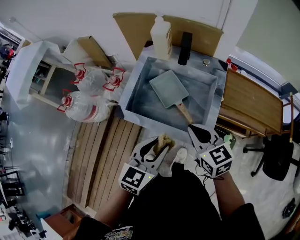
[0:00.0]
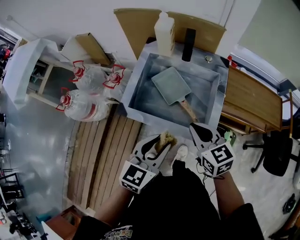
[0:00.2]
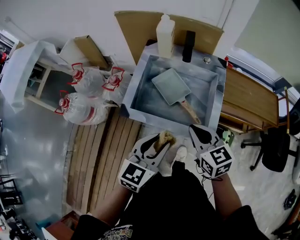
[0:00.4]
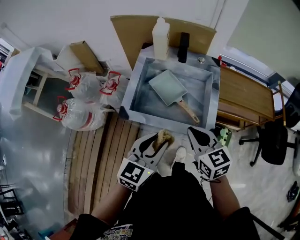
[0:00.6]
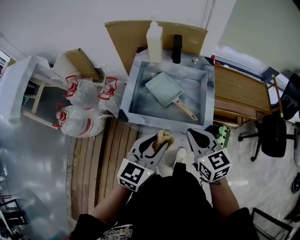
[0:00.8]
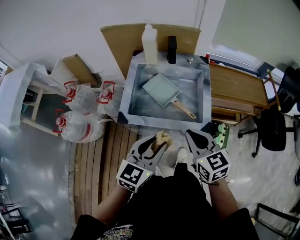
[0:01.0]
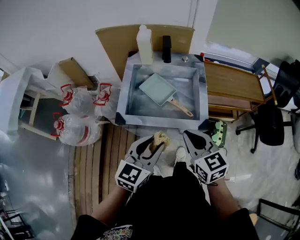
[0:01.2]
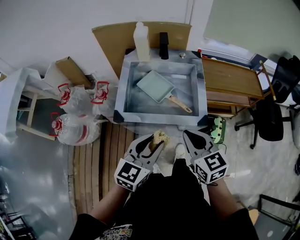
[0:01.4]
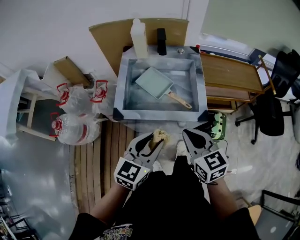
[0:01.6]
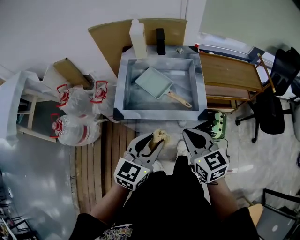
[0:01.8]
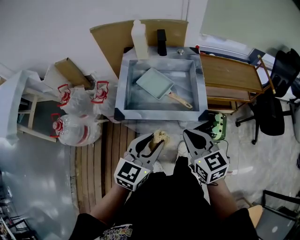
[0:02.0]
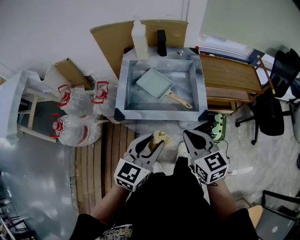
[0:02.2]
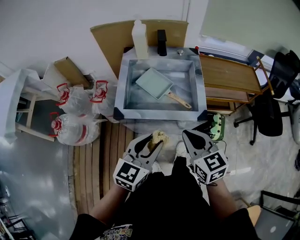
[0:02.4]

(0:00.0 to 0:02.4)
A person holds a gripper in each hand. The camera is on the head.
0:00.0 - 0:01.2: The left gripper shifts about 10 cm to the left and backward, while the right gripper travels backward by approximately 10 cm.
0:01.2 - 0:02.4: There are only small adjustments of the grippers.

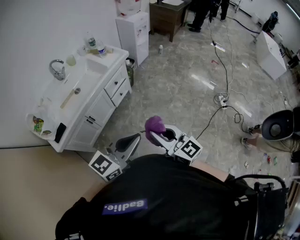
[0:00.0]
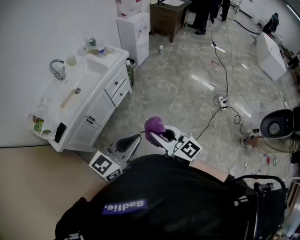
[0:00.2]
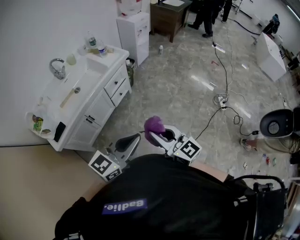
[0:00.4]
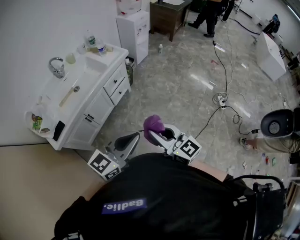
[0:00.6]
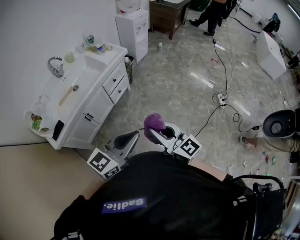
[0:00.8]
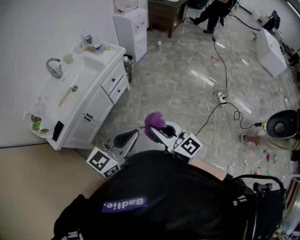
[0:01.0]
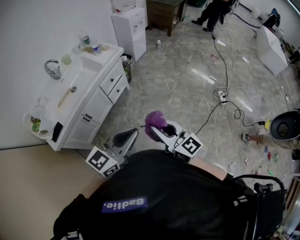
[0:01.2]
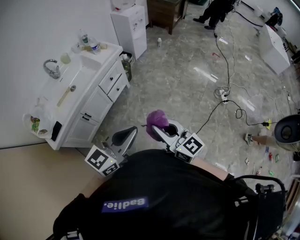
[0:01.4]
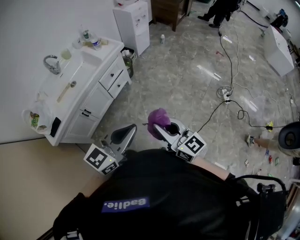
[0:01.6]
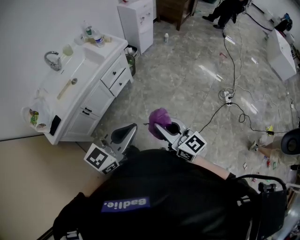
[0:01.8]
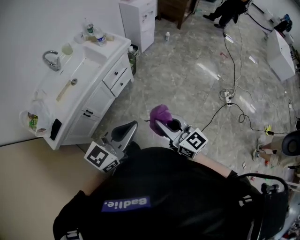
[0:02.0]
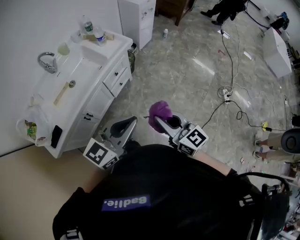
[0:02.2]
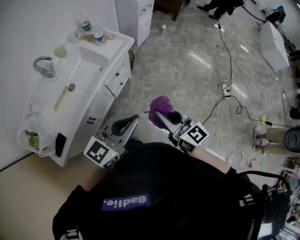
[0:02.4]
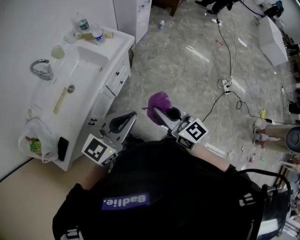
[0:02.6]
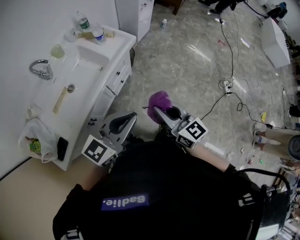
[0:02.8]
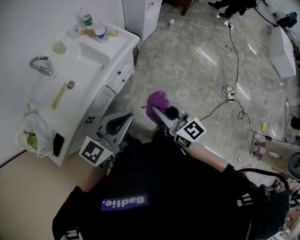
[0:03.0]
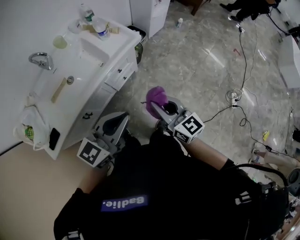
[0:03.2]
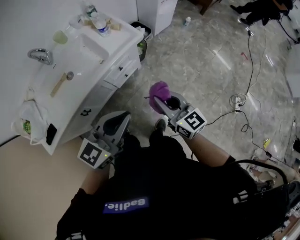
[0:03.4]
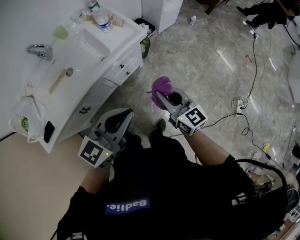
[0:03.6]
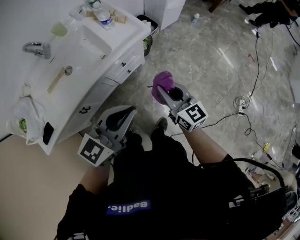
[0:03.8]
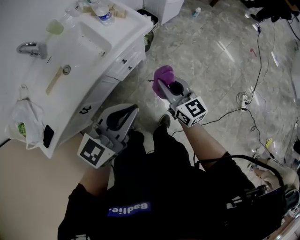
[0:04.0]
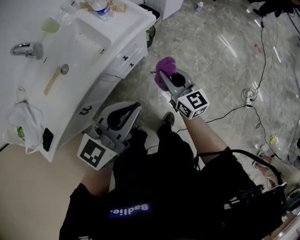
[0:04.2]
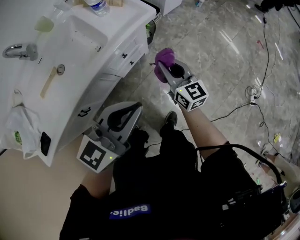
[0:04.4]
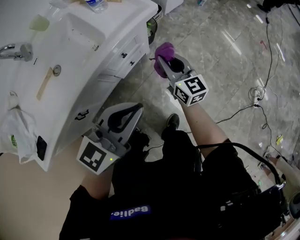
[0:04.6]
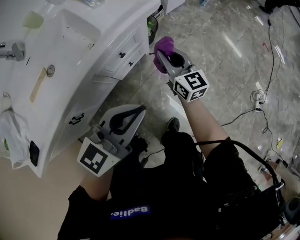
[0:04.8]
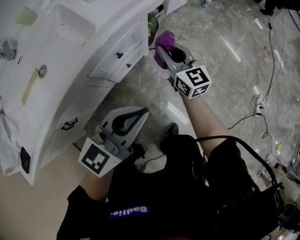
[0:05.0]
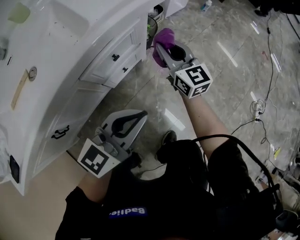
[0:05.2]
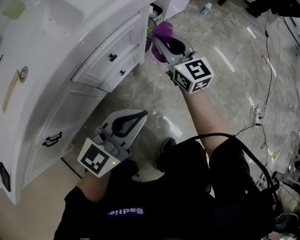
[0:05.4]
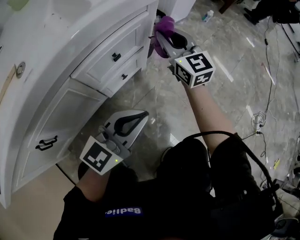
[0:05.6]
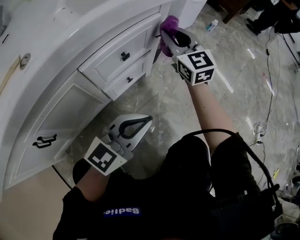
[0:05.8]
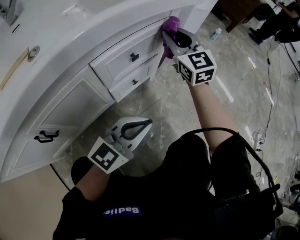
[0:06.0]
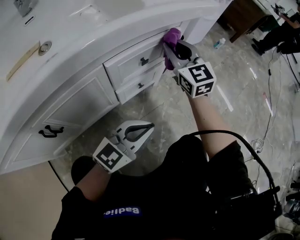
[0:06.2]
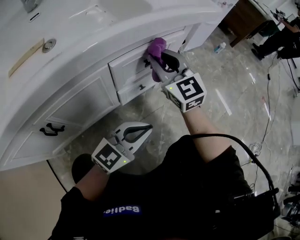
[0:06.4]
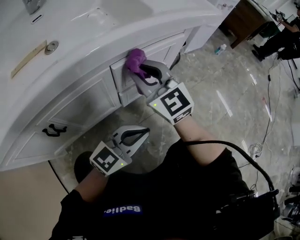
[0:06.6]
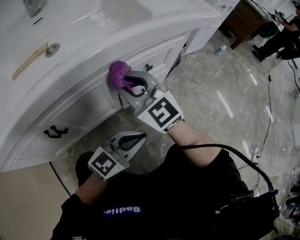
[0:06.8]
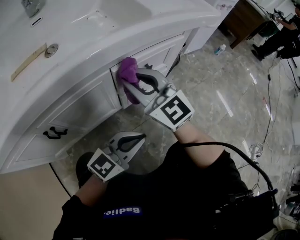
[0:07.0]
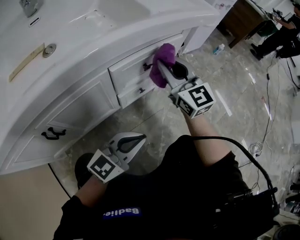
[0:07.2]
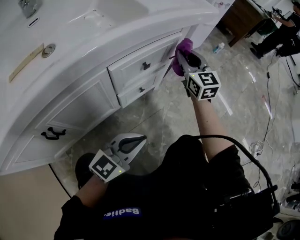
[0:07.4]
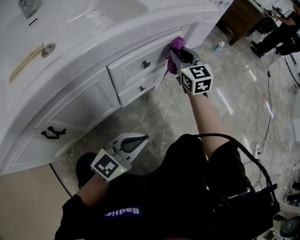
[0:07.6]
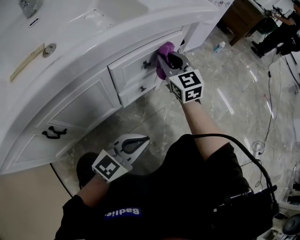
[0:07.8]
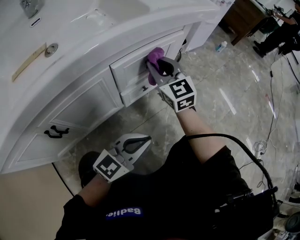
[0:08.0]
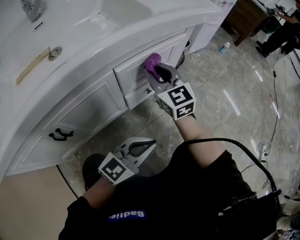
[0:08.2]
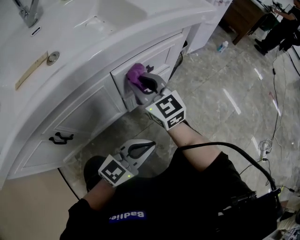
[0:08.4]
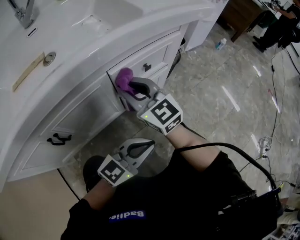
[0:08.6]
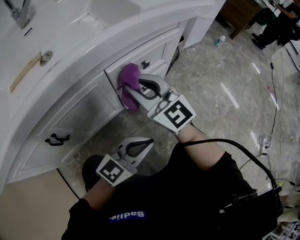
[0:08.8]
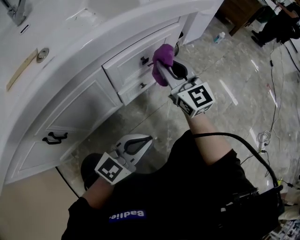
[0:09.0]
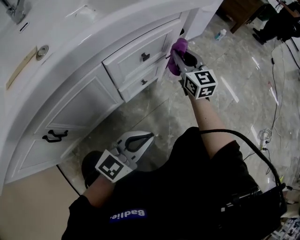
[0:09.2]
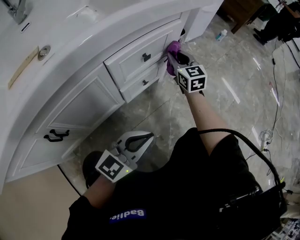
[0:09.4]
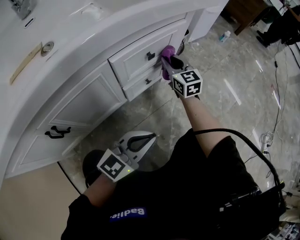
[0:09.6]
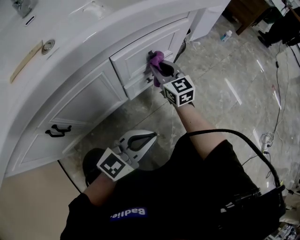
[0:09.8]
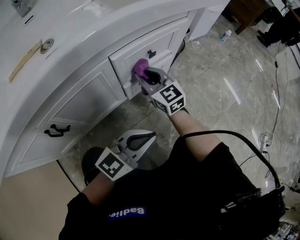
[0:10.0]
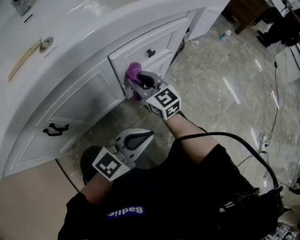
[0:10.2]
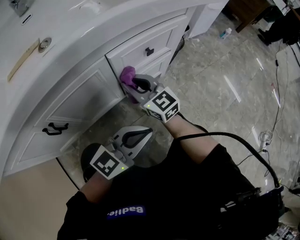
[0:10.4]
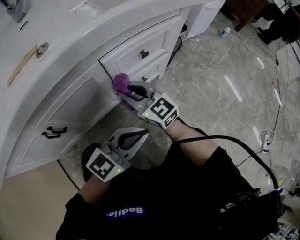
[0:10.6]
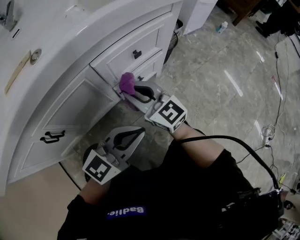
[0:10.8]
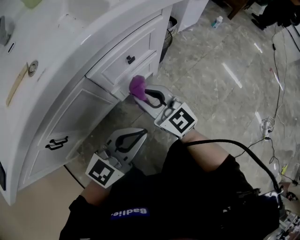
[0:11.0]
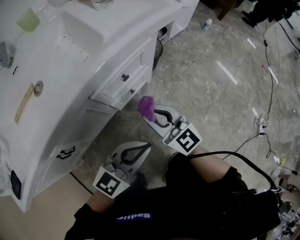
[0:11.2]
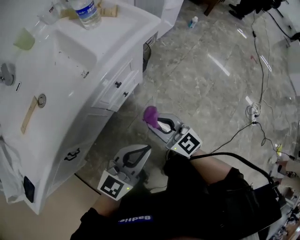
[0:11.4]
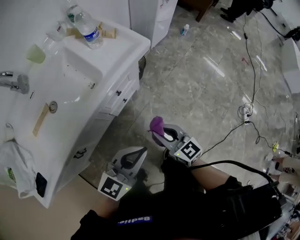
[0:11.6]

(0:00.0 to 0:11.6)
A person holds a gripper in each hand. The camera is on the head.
0:00.0 - 0:01.4: Both grippers travel together to the right, some 5 cm.
0:01.4 - 0:02.8: Both grippers move forward and to the left, roughly 30 cm.
0:02.8 - 0:04.4: The left gripper heads downward and forward, covering approximately 25 cm. The right gripper shifts roughly 40 cm downward and forward.
0:04.4 - 0:05.8: The left gripper is displaced downward by roughly 40 cm, while the right gripper goes roughly 25 cm downward and forward, and rotates about 30 degrees.
0:05.8 - 0:07.2: The right gripper goes approximately 15 cm backward and to the left. Meanwhile the left gripper moves to the left, some 5 cm.
0:07.2 - 0:08.8: The right gripper travels backward and to the left by some 10 cm.
0:08.8 - 0:10.2: The right gripper moves downward, about 15 cm, and reaches approximately 20 cm forward, then returns.
0:10.2 - 0:11.6: The right gripper travels upward, to the right and backward by approximately 35 cm. The left gripper goes approximately 30 cm upward.

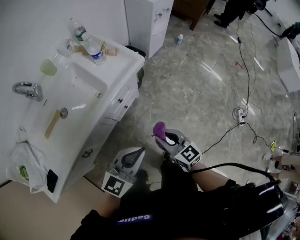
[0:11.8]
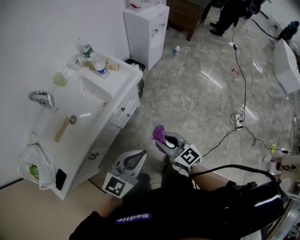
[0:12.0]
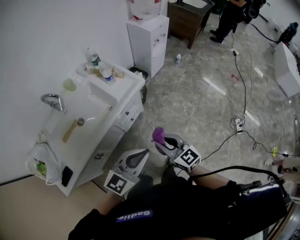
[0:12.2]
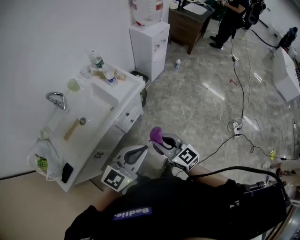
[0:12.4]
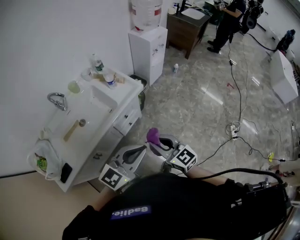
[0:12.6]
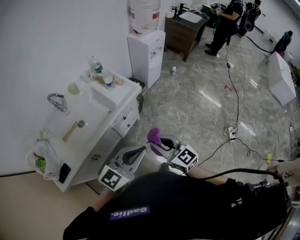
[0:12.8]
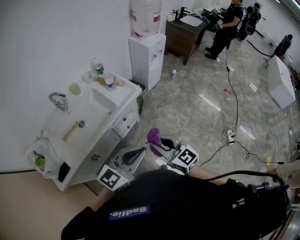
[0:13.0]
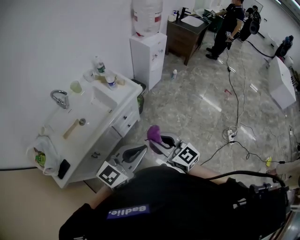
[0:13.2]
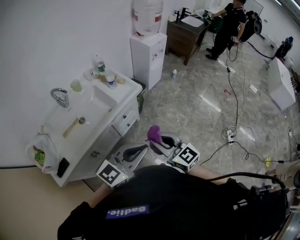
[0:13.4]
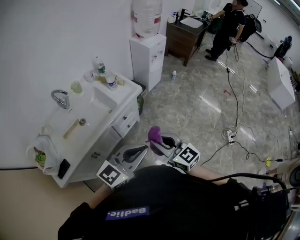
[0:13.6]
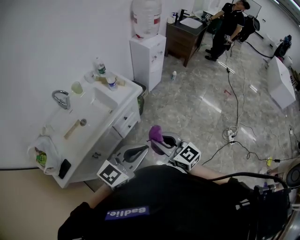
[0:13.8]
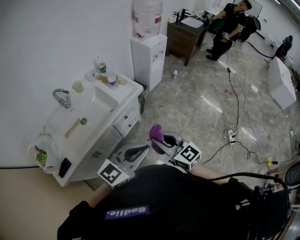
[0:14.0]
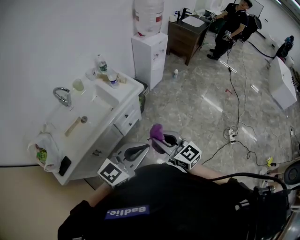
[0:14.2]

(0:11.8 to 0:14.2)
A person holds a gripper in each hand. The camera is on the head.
0:11.8 - 0:13.0: The grippers both shift upward by approximately 25 cm.
0:13.0 - 0:14.2: The grippers make only small movements.

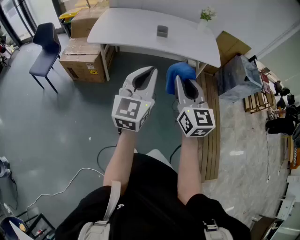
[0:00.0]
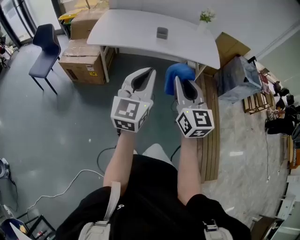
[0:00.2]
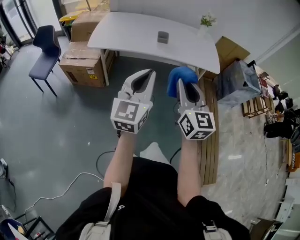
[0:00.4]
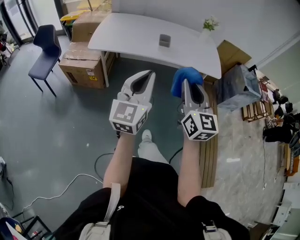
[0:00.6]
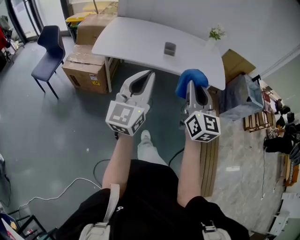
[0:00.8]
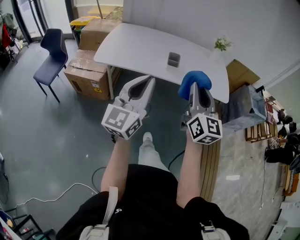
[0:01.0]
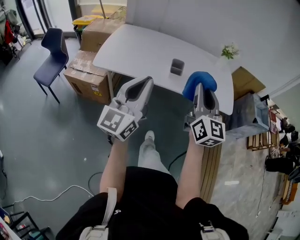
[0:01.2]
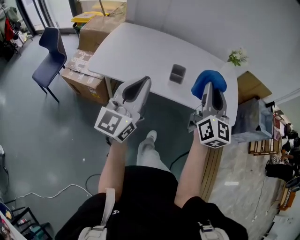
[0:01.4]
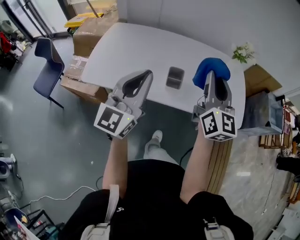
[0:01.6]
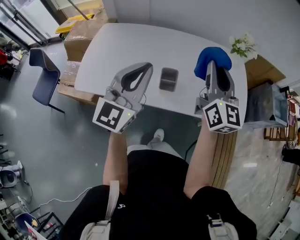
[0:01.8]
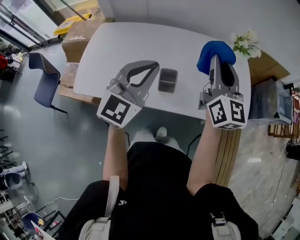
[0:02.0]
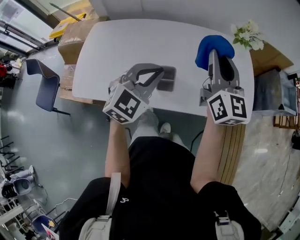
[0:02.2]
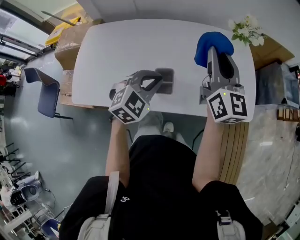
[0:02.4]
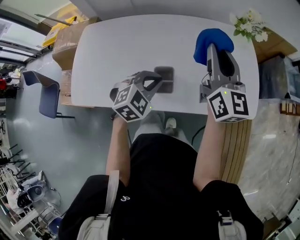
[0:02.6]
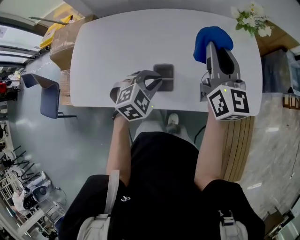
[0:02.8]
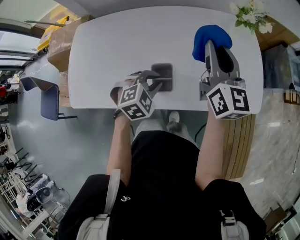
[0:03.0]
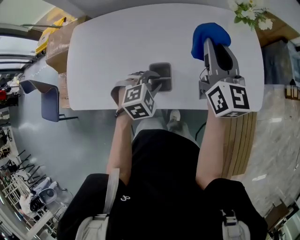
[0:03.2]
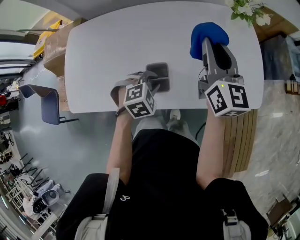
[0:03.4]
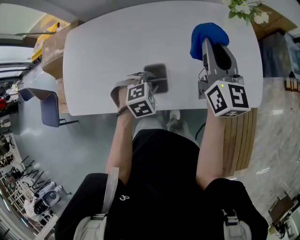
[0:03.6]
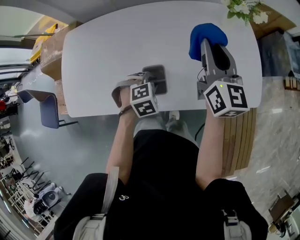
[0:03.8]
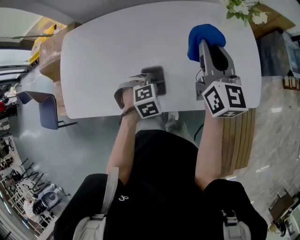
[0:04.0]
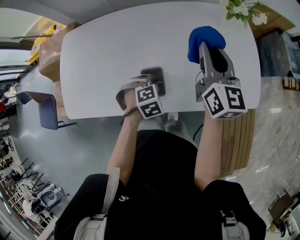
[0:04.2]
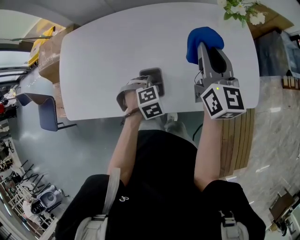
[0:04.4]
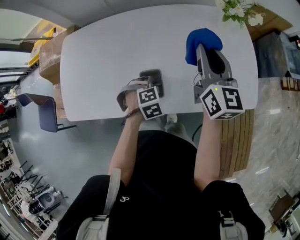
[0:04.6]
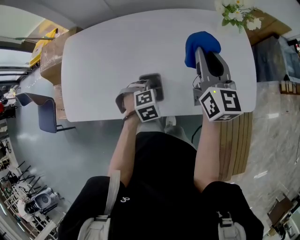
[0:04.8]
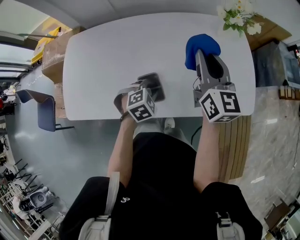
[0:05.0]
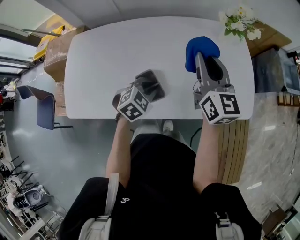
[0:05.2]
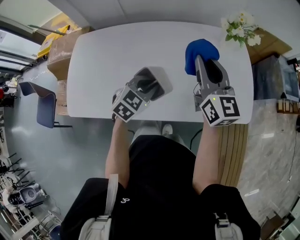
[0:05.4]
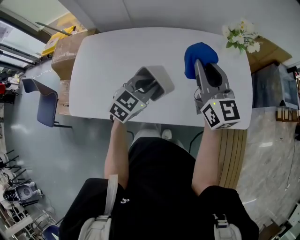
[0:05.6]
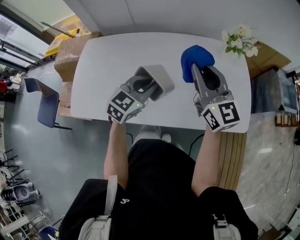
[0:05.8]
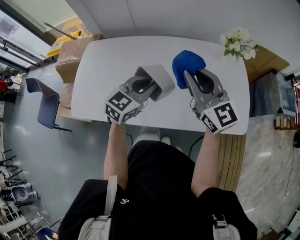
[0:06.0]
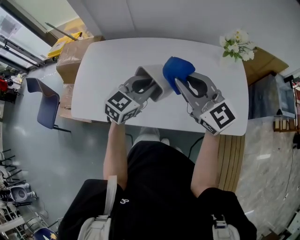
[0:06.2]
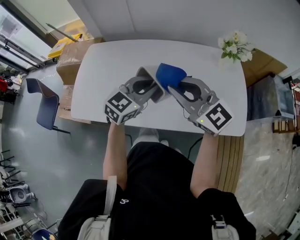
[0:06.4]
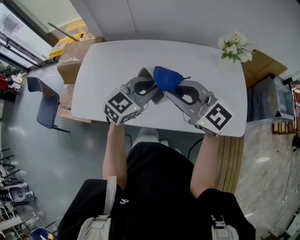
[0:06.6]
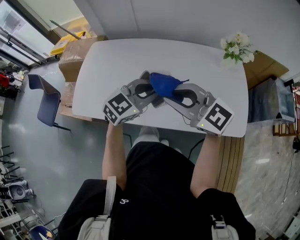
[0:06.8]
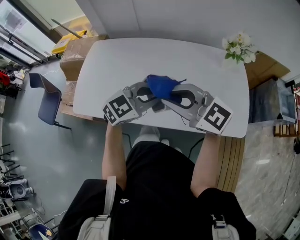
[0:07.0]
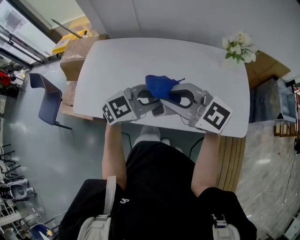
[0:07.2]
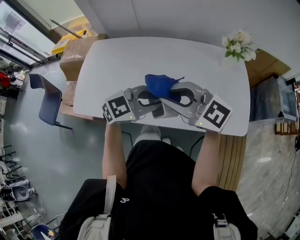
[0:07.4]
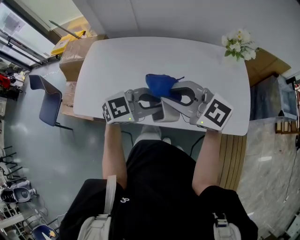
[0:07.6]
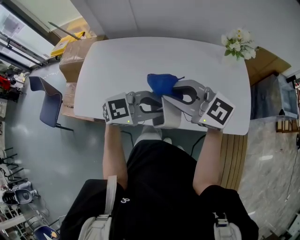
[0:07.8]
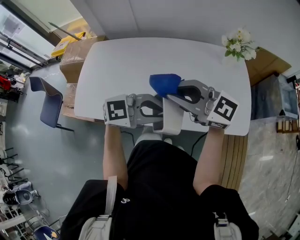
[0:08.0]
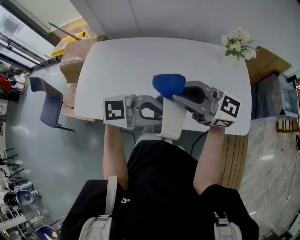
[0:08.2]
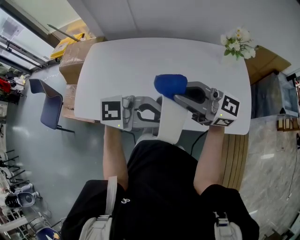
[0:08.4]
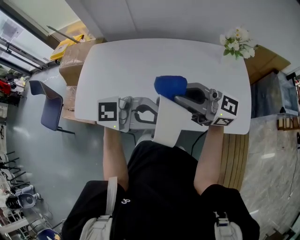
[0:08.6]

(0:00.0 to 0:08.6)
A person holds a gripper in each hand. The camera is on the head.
0:00.0 - 0:01.4: Both grippers travel together forward, some 35 cm.
0:01.4 - 0:02.8: The left gripper travels forward and downward by some 40 cm, and angles its fingers downward, by some 70 degrees. The right gripper shifts approximately 30 cm forward.
0:02.8 - 0:04.4: The left gripper travels downward by approximately 15 cm, and swivels roughly 30 degrees; the right gripper is displaced downward by approximately 5 cm.
0:04.4 - 0:05.8: The left gripper is displaced upward by approximately 20 cm, and angles its fingers upward, by about 50 degrees. Meanwhile the right gripper heads upward, covering approximately 10 cm, and turns by about 30 degrees.
0:05.8 - 0:07.2: The right gripper ends up some 15 cm from where it was, and changes its angle by approximately 50 degrees. Meanwhile the left gripper moves some 10 cm, and rotates some 20 degrees.
0:07.2 - 0:08.6: The left gripper ends up roughly 10 cm from where it was, and turns by some 40 degrees; the right gripper changes place by approximately 5 cm, and changes its angle by roughly 30 degrees.
